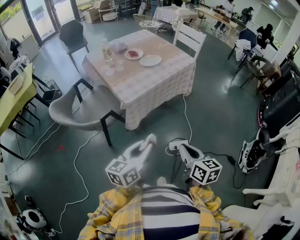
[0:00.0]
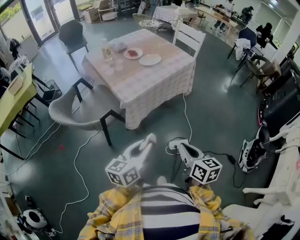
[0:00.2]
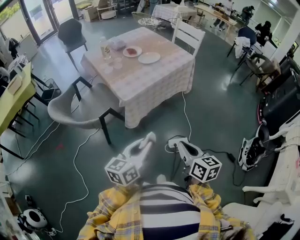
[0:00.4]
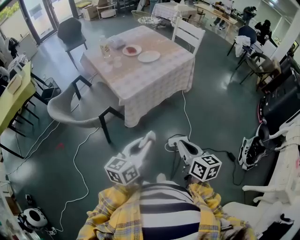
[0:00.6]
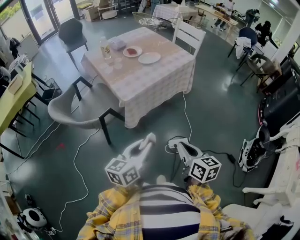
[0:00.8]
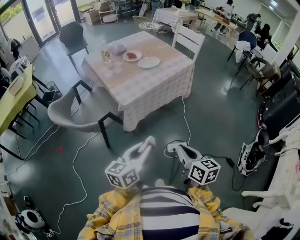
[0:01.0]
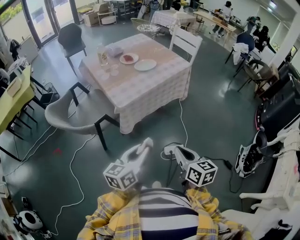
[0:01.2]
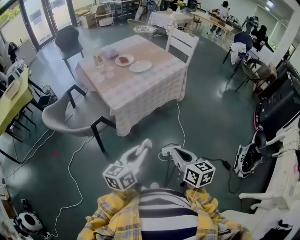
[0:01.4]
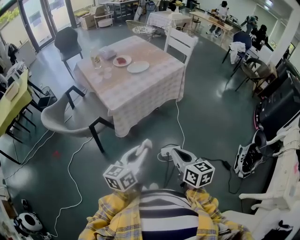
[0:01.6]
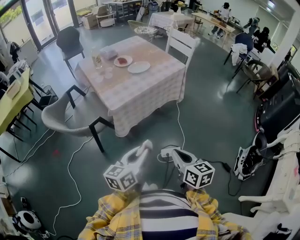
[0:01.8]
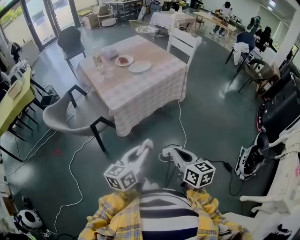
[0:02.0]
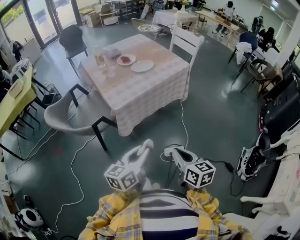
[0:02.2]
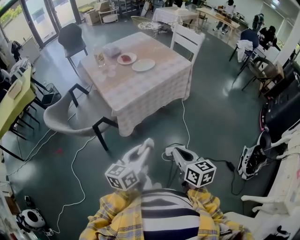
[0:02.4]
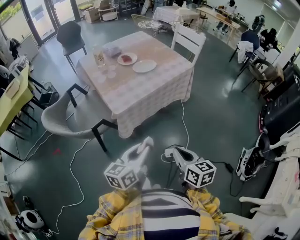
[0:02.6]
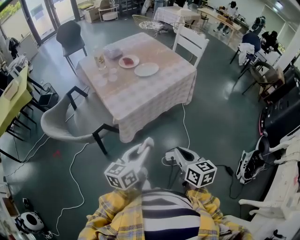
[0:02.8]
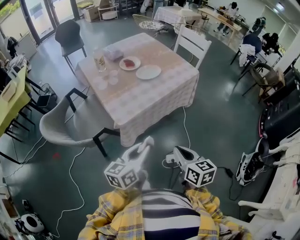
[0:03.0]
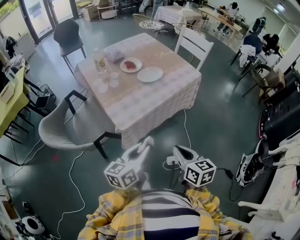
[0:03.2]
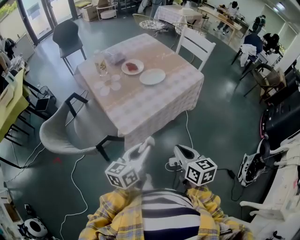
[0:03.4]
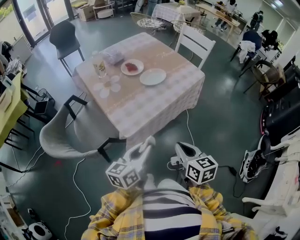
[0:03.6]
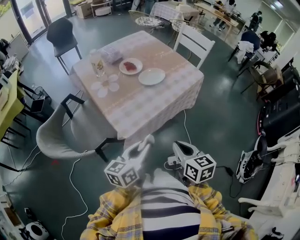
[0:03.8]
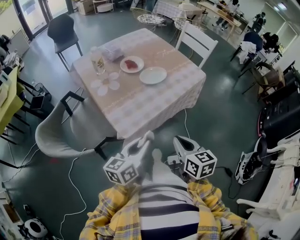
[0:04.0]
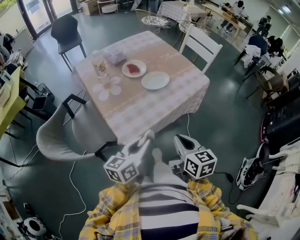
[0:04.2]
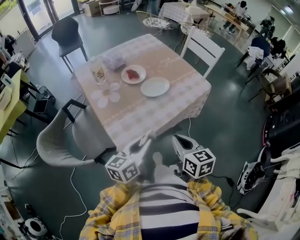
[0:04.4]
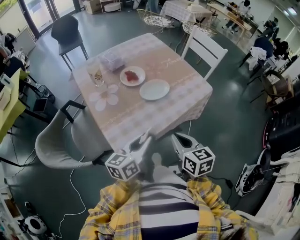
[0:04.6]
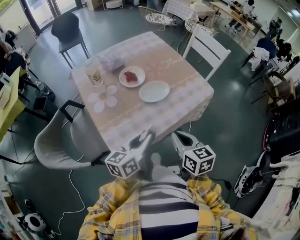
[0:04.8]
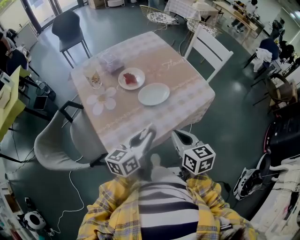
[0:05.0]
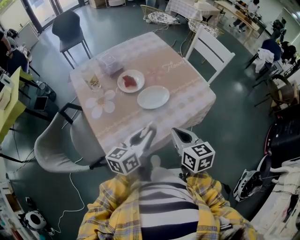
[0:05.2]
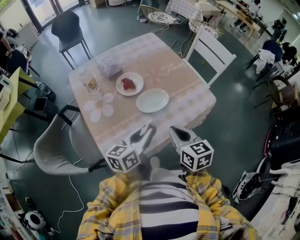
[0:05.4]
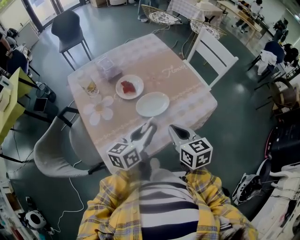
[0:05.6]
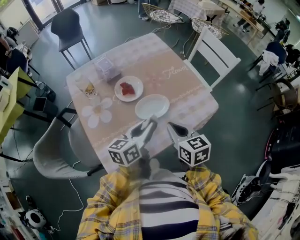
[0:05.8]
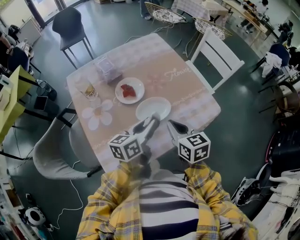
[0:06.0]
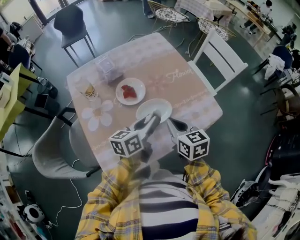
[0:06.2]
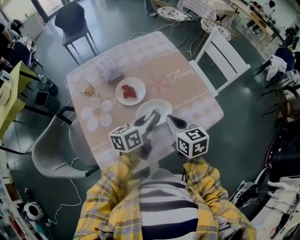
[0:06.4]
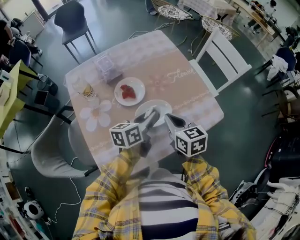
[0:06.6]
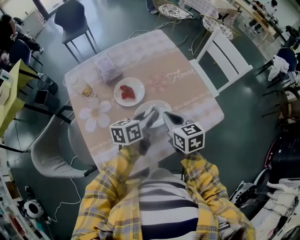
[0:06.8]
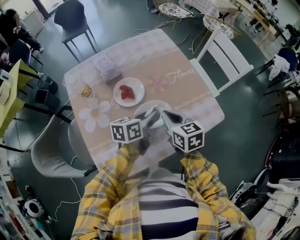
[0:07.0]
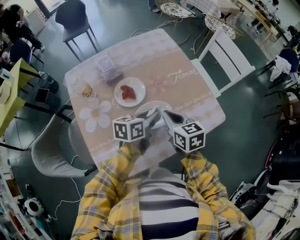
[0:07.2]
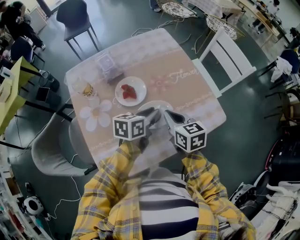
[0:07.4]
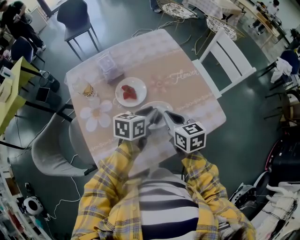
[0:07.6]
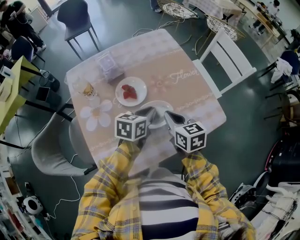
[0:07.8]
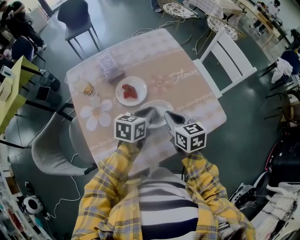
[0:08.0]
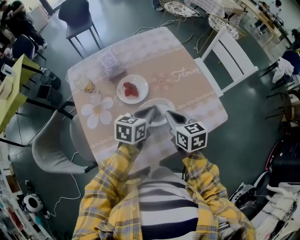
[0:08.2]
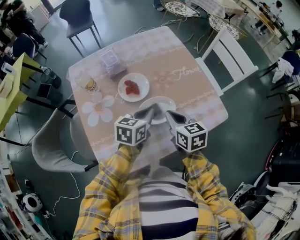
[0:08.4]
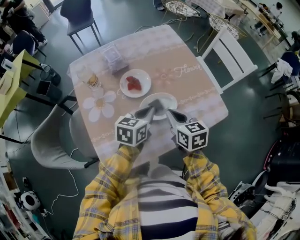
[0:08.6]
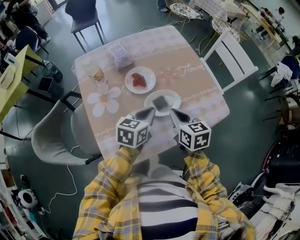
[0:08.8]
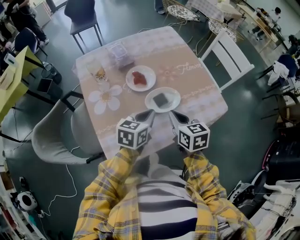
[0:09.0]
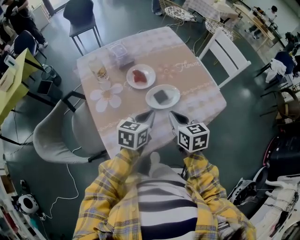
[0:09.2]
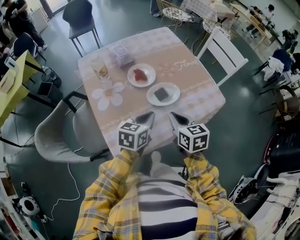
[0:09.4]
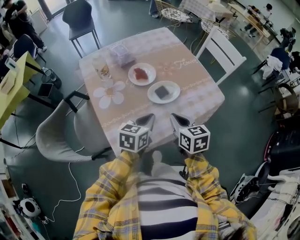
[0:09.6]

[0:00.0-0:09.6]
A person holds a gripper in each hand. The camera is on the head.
0:00.0 to 0:01.6: The left gripper goes about 5 cm to the right.
0:01.6 to 0:03.2: The grippers both shift forward and to the left by some 15 cm.
0:03.2 to 0:04.8: Both grippers move forward, some 20 cm.
0:04.8 to 0:06.4: Both grippers move forward, some 20 cm.
0:06.4 to 0:08.0: The left gripper turns by about 20 degrees.
0:08.0 to 0:09.6: Both grippers travel together backward, roughly 15 cm.

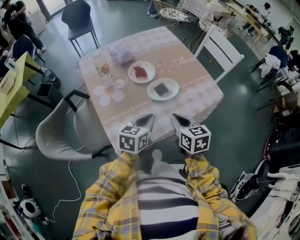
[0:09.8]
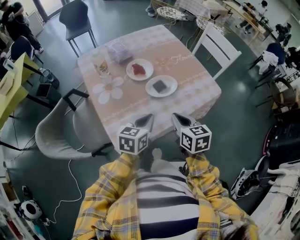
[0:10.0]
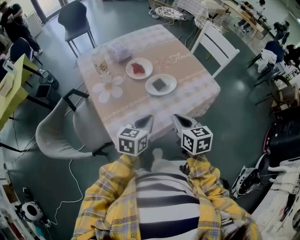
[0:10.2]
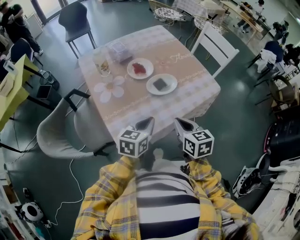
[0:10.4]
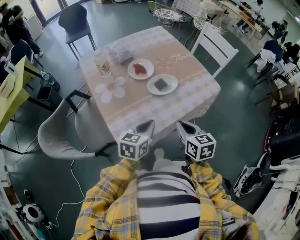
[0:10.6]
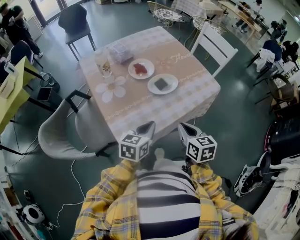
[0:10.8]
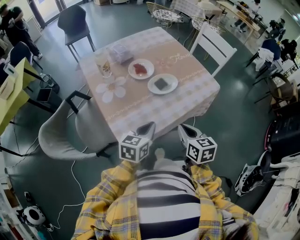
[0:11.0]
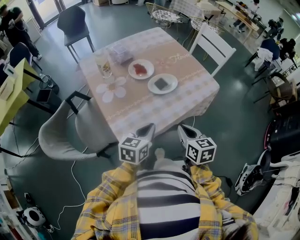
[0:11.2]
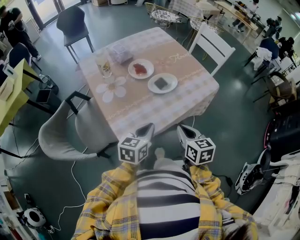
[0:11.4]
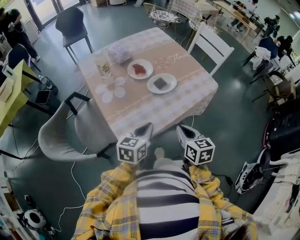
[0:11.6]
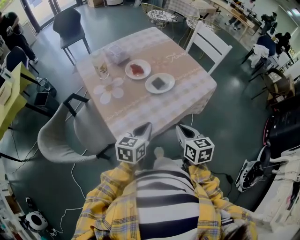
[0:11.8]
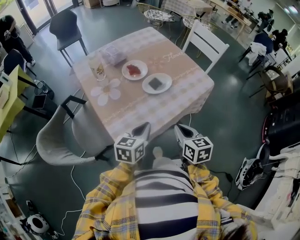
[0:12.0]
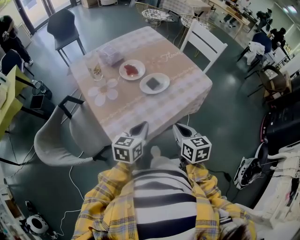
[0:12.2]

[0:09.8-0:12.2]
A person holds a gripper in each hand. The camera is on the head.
0:09.8 to 0:11.0: Both grippers move backward, some 10 cm.
0:11.0 to 0:12.2: The grippers move only a little.

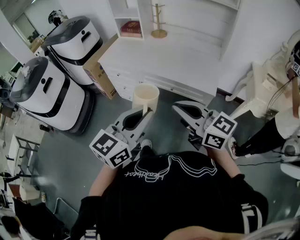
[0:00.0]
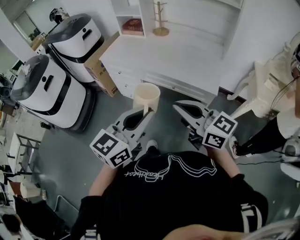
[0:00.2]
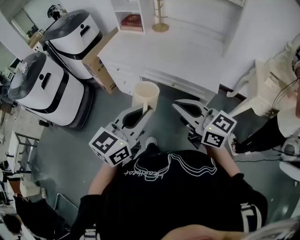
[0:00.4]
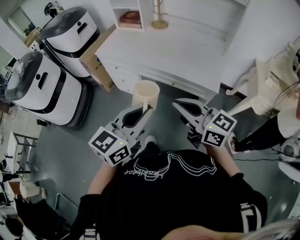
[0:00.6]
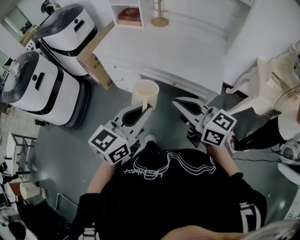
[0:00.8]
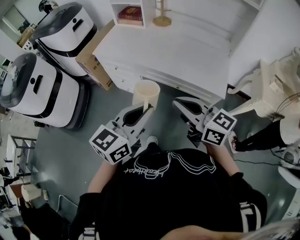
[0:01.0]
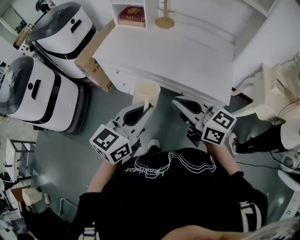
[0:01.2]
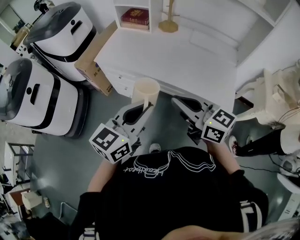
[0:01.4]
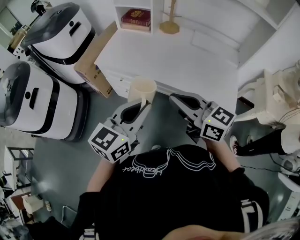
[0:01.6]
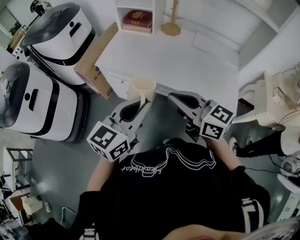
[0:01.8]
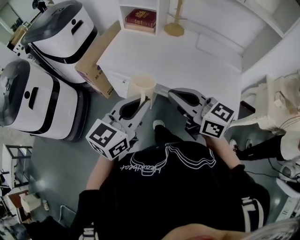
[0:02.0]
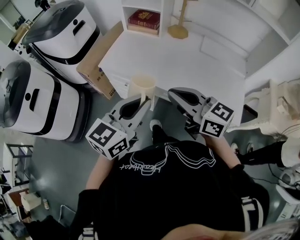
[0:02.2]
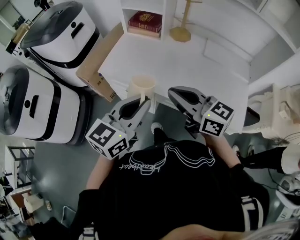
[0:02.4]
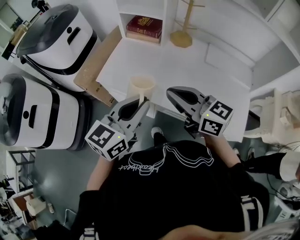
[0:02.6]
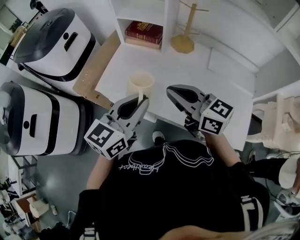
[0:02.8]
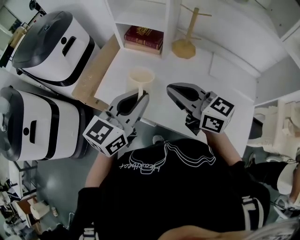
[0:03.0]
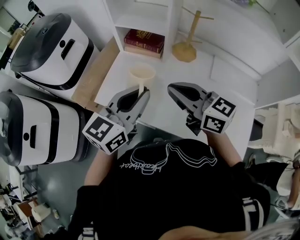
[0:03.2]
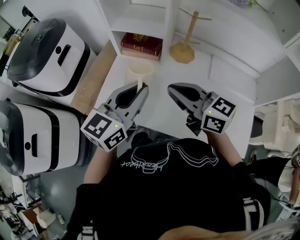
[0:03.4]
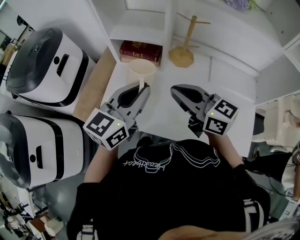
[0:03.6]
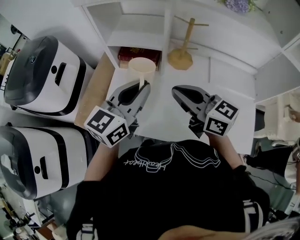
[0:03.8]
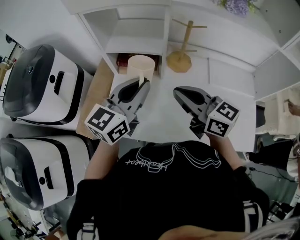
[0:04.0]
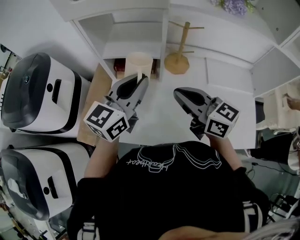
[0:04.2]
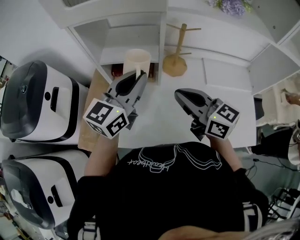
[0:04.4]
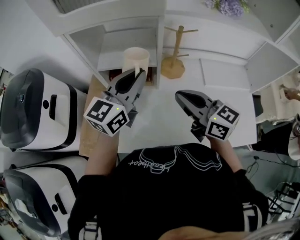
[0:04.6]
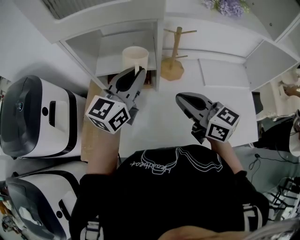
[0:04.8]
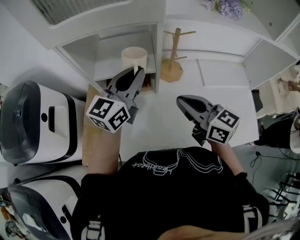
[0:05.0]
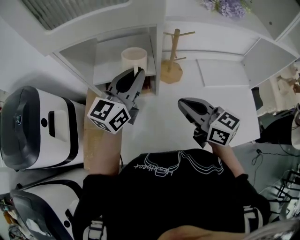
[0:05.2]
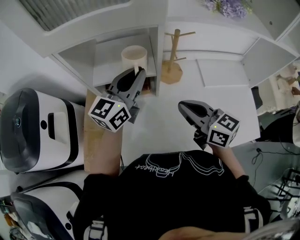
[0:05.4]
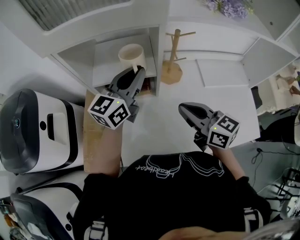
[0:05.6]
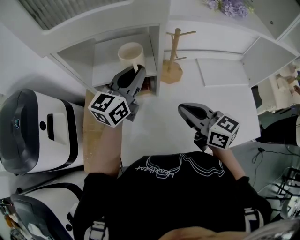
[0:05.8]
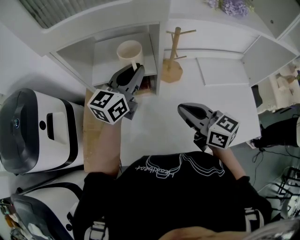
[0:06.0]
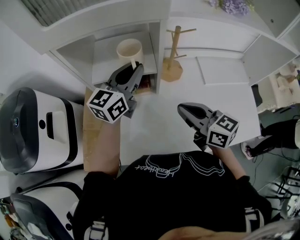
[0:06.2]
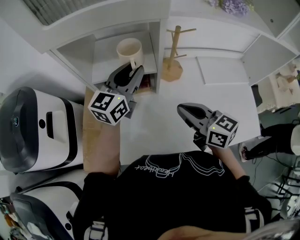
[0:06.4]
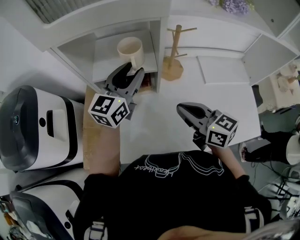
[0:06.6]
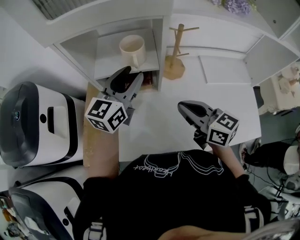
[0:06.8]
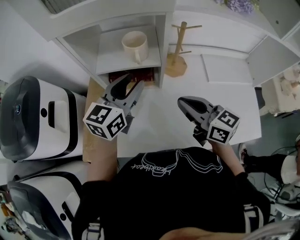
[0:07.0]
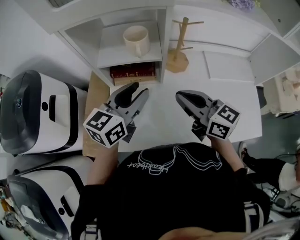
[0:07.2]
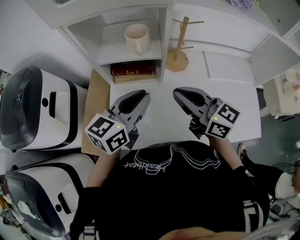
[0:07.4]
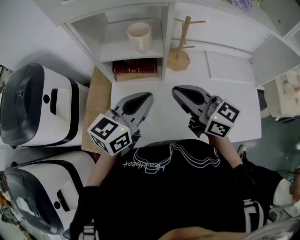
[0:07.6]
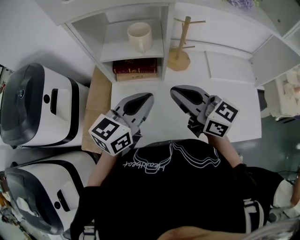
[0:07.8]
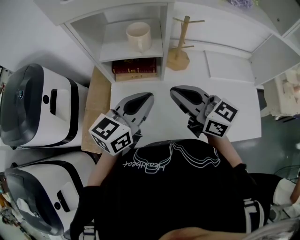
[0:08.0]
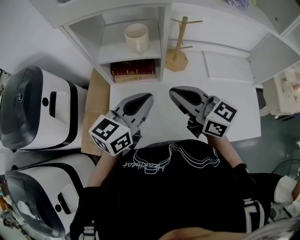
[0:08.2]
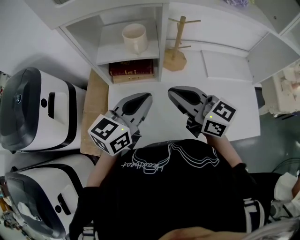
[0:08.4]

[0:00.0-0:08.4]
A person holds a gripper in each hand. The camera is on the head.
0:00.0 to 0:01.4: The two grippers go roughly 25 cm forward and to the left.
0:01.4 to 0:02.8: Both grippers move forward, some 30 cm.
0:02.8 to 0:04.2: The two grippers go roughly 20 cm forward.
0:04.2 to 0:05.6: The right gripper changes place by approximately 5 cm. Meanwhile the left gripper shifts some 15 cm forward.
0:05.6 to 0:07.0: The left gripper is displaced backward by some 5 cm, and opens up.
0:07.0 to 0:08.4: The left gripper goes approximately 10 cm backward, and closes its fingers.

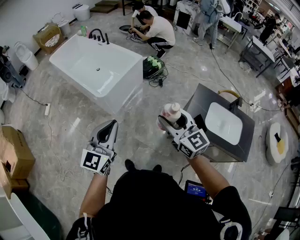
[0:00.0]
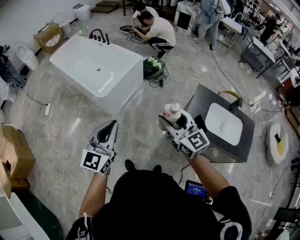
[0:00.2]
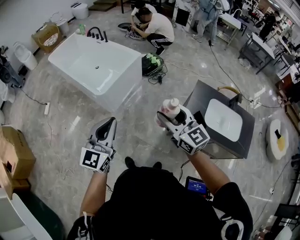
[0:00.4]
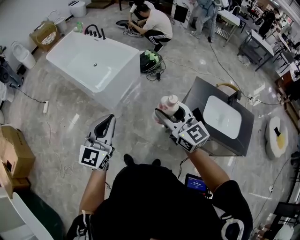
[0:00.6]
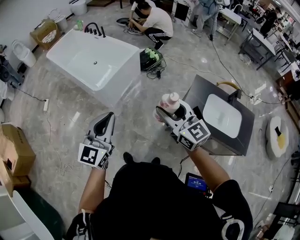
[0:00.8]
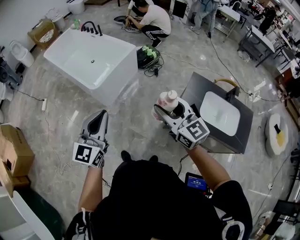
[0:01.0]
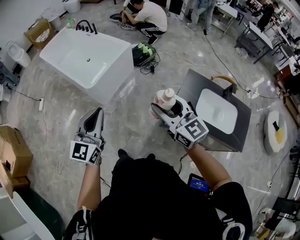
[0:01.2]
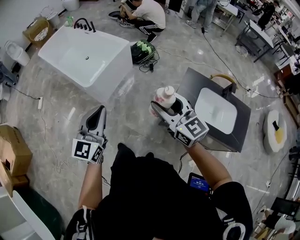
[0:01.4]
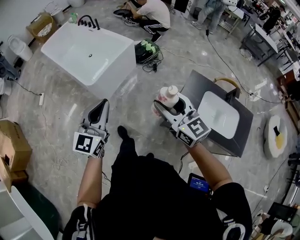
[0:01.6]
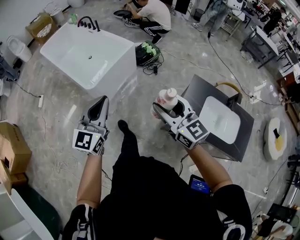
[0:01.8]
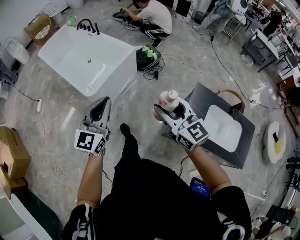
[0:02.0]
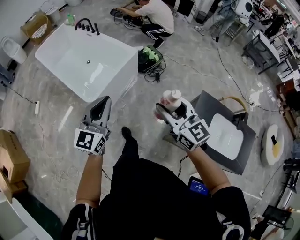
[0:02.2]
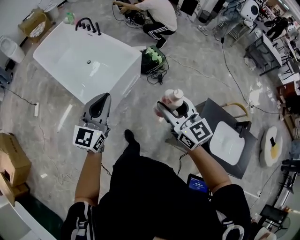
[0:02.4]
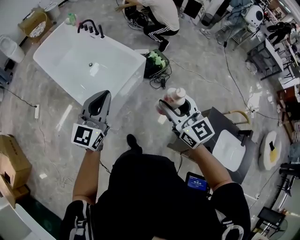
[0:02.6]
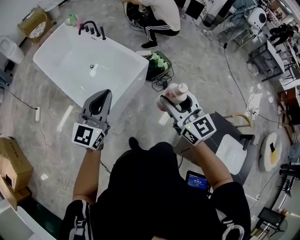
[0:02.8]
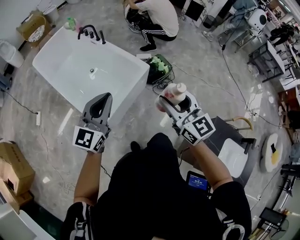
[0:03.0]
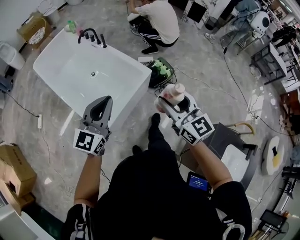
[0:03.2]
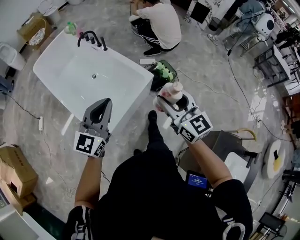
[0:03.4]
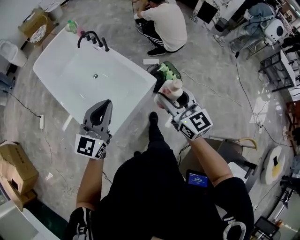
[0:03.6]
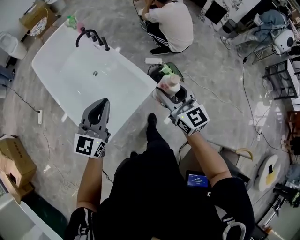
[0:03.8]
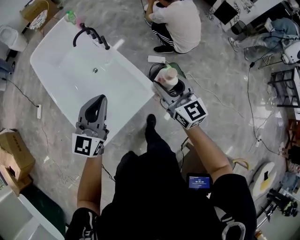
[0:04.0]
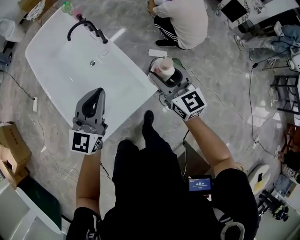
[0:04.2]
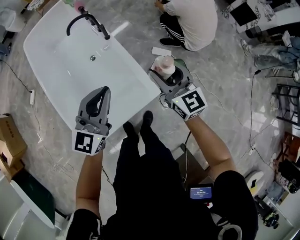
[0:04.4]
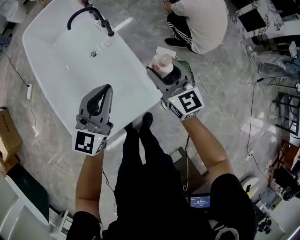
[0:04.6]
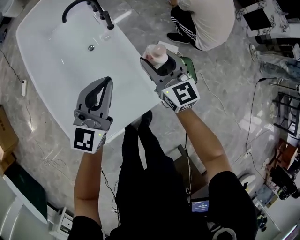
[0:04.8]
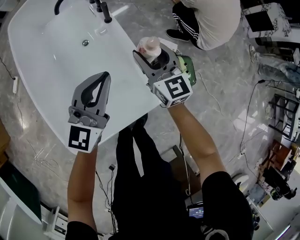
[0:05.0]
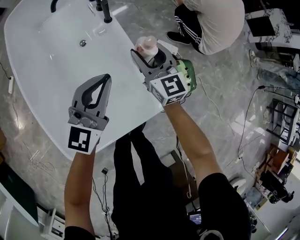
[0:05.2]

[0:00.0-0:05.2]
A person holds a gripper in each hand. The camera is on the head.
0:00.0 to 0:01.8: The right gripper heads to the right and forward, covering some 10 cm. The left gripper shifts some 15 cm forward and to the right.
0:01.8 to 0:03.4: The two grippers travel together, forward, about 50 cm.
0:03.4 to 0:05.2: The two grippers travel together, forward, approximately 50 cm. Both grippers move downward, approximately 35 cm.
